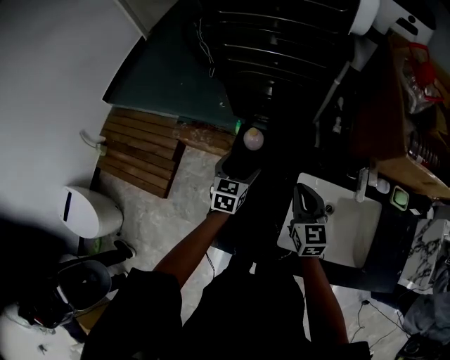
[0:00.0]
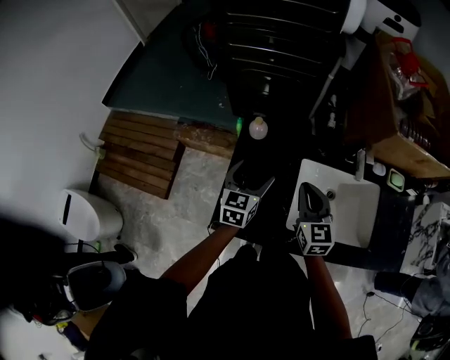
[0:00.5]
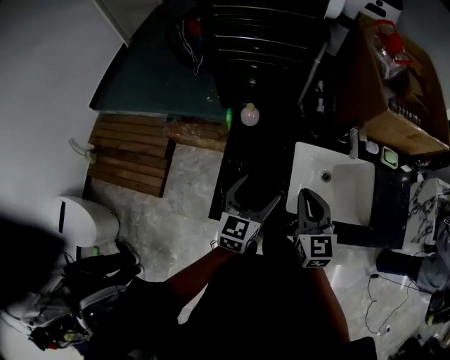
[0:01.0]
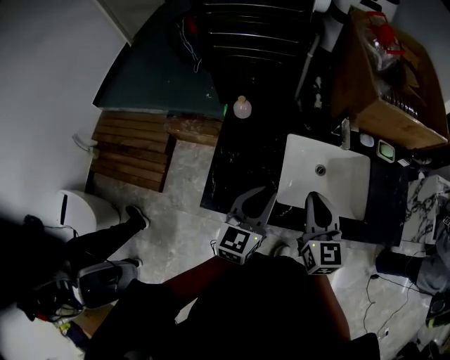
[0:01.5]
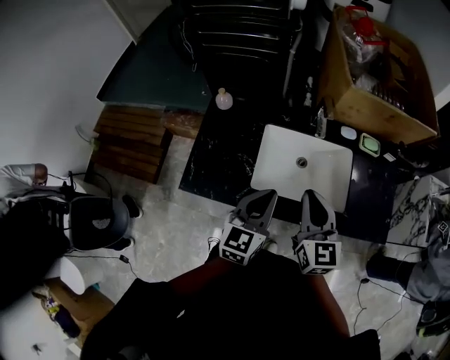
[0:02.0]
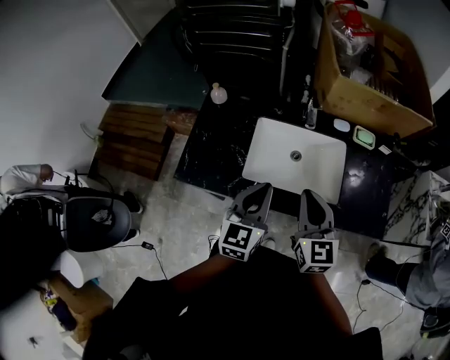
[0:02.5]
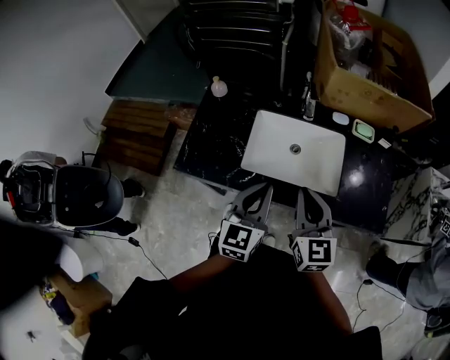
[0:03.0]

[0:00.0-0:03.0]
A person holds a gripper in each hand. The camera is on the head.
0:00.0 to 0:01.5: The right gripper travels backward and upward by some 20 cm, while the left gripper shifts roughly 30 cm backward, upward and to the right, swivels approximately 20 degrees, and closes its fingers.
0:01.5 to 0:03.0: Both grippers move to the right and backward, some 20 cm.

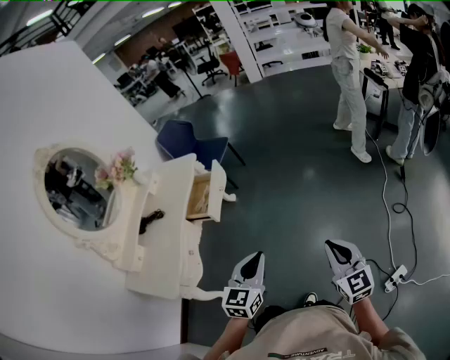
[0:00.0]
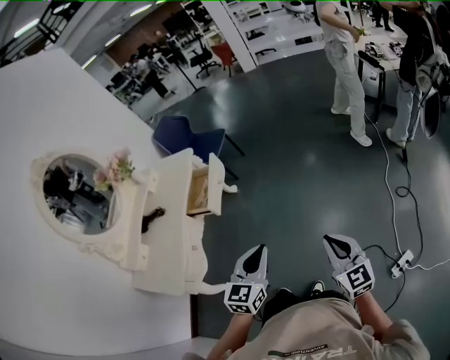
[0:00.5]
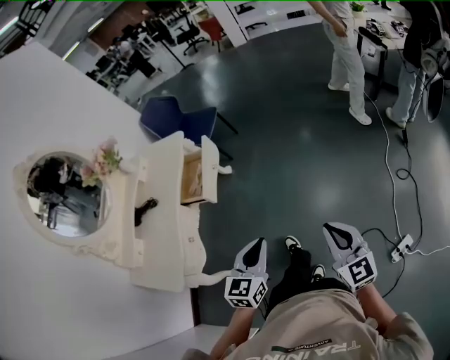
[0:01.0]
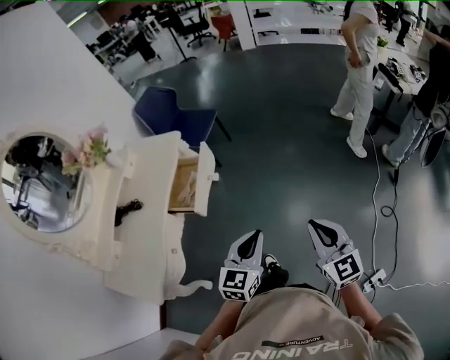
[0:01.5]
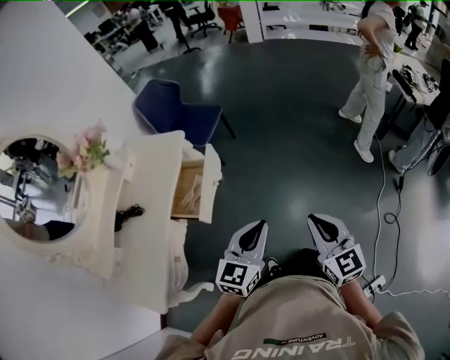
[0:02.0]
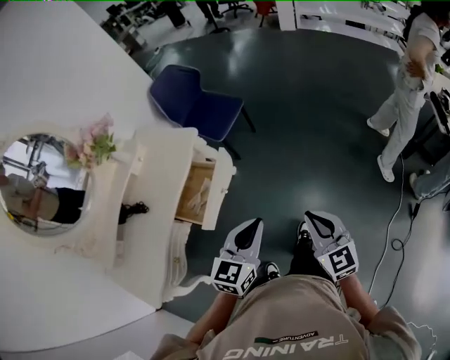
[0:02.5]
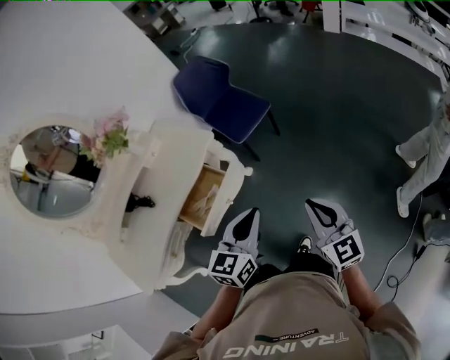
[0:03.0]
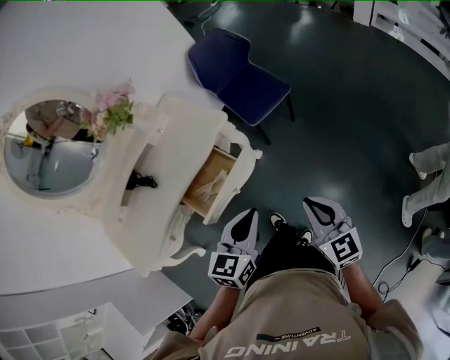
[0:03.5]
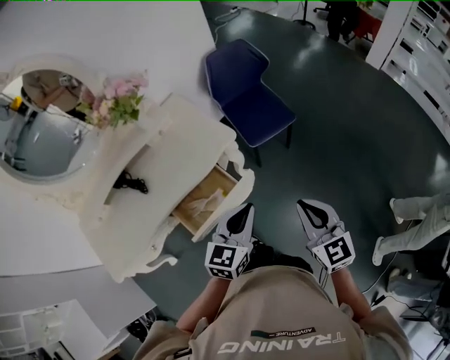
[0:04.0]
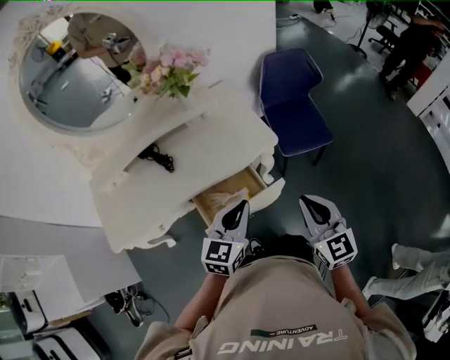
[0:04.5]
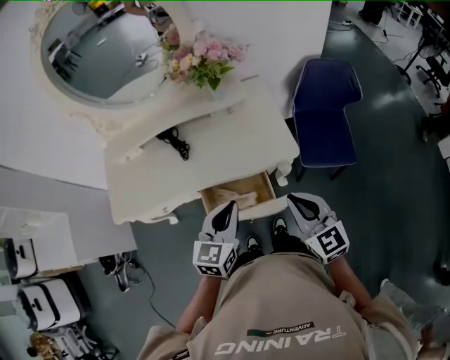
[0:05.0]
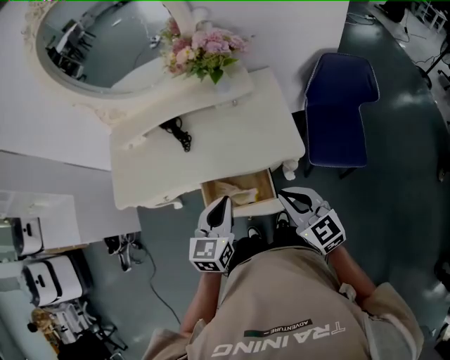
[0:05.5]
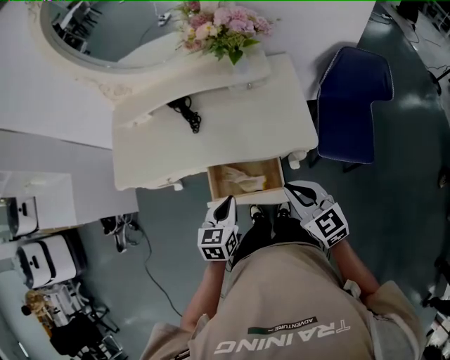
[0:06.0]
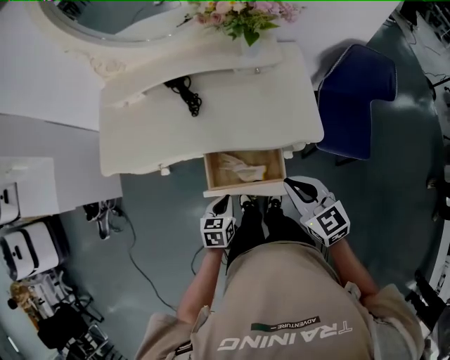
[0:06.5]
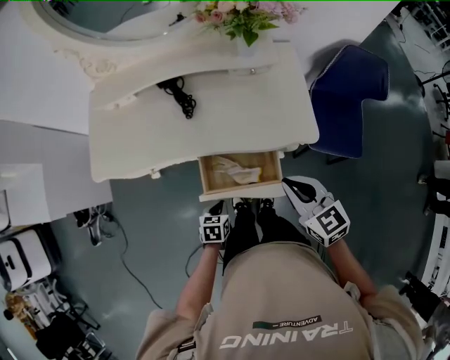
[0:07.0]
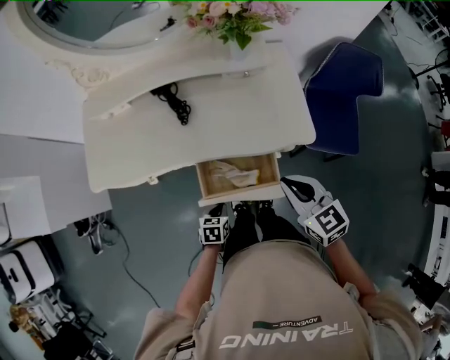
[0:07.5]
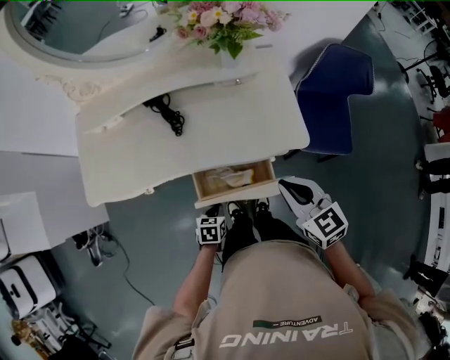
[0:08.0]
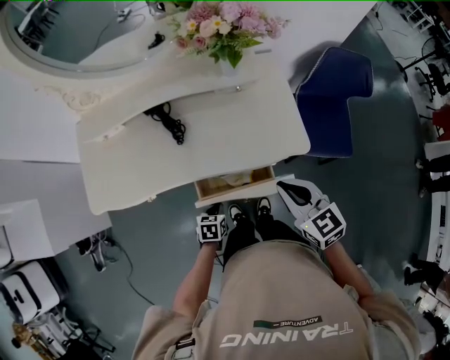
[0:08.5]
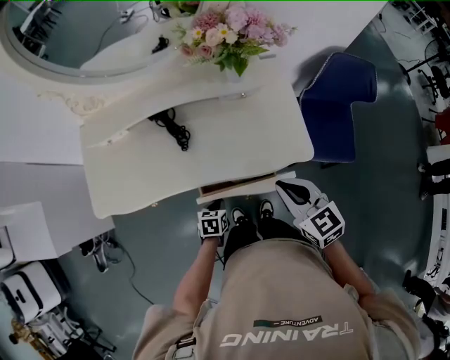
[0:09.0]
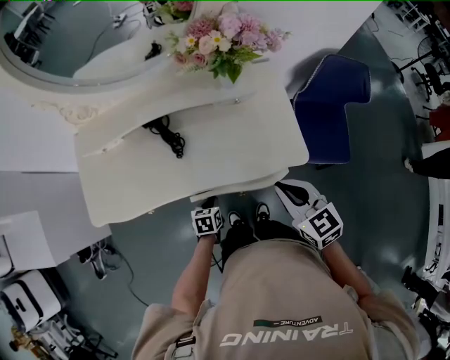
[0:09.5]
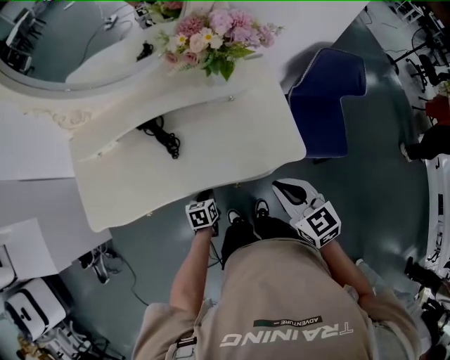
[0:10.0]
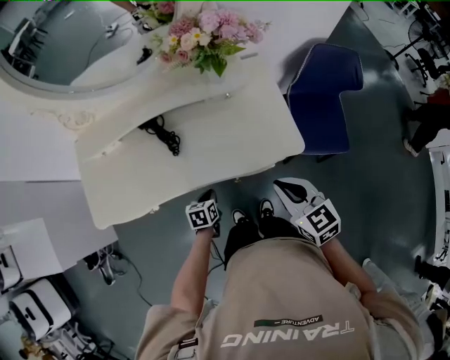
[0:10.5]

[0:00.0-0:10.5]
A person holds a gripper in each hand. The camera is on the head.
0:00.0 to 0:02.0: The right gripper heads forward and to the left, covering some 30 cm. The left gripper moves forward, approximately 25 cm.
0:02.0 to 0:04.0: The right gripper changes place by approximately 40 cm, and swivels approximately 40 degrees; the left gripper shifts by some 35 cm, and rotates some 40 degrees.
0:04.0 to 0:06.5: The left gripper goes some 20 cm downward, and points its fingers roughly 30 degrees further downward, while the right gripper ends up roughly 25 cm from where it was, and rotates roughly 50 degrees.
0:06.5 to 0:08.5: The right gripper moves forward, roughly 5 cm. Meanwhile the left gripper moves downward and forward, approximately 10 cm.
0:08.5 to 0:10.5: The left gripper shifts some 10 cm forward.

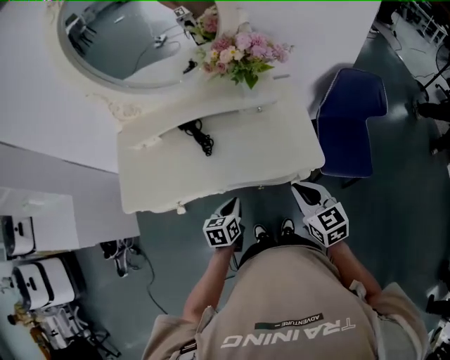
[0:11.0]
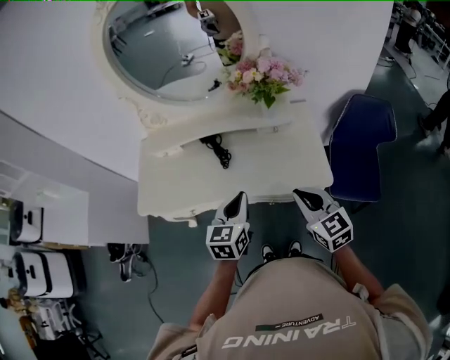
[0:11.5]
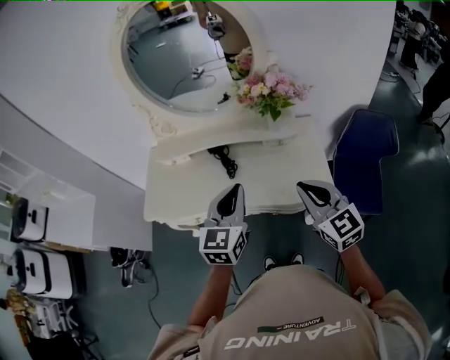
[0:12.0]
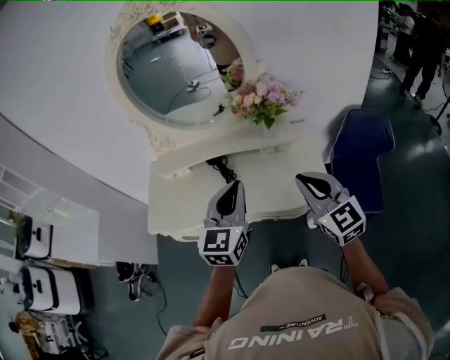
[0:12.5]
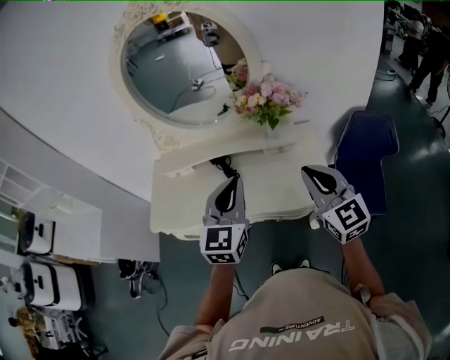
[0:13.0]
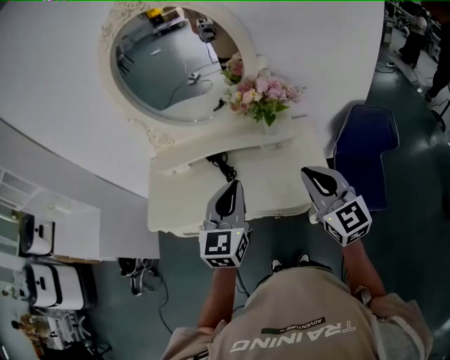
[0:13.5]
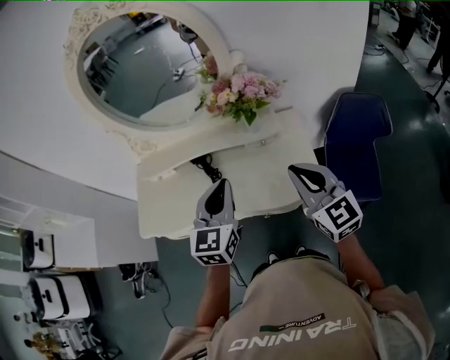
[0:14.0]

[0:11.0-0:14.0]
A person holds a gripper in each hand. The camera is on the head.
0:11.0 to 0:12.5: The right gripper heads upward, covering about 20 cm, and swivels some 30 degrees. Meanwhile the left gripper moves upward, approximately 30 cm, and tilts its fingers about 30 degrees upward.
0:12.5 to 0:14.0: The right gripper moves approximately 5 cm. Meanwhile the left gripper ends up roughly 5 cm from where it was.

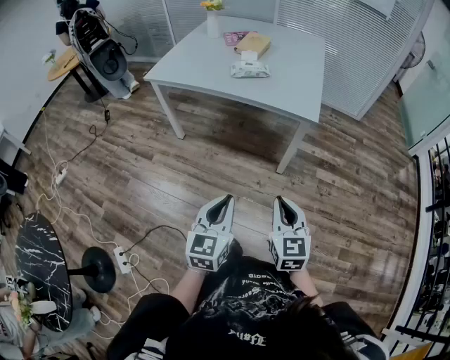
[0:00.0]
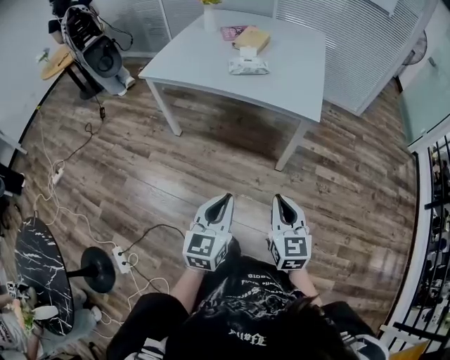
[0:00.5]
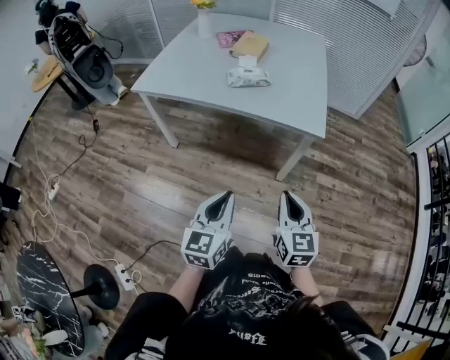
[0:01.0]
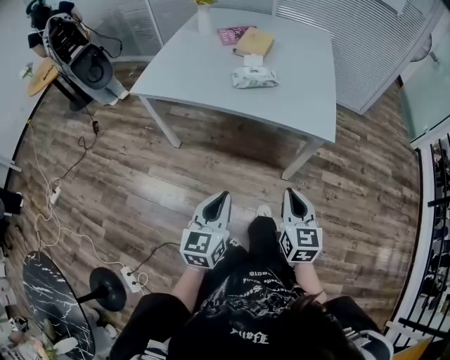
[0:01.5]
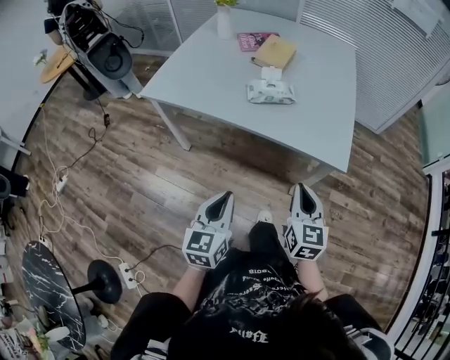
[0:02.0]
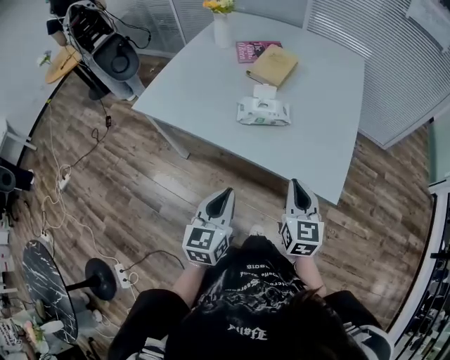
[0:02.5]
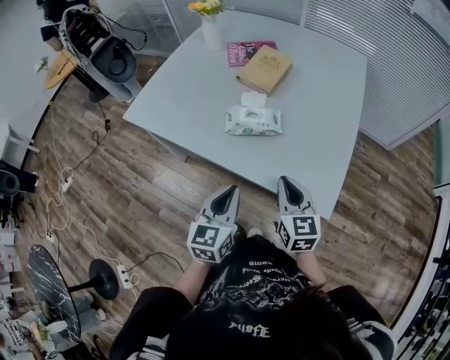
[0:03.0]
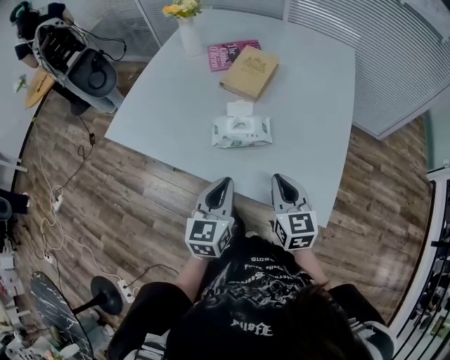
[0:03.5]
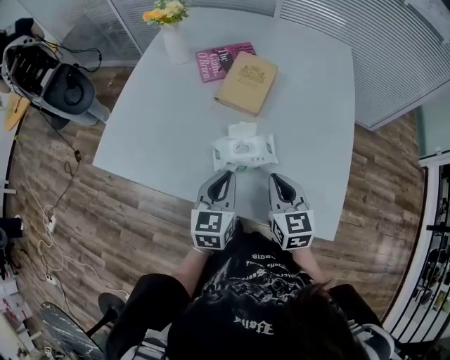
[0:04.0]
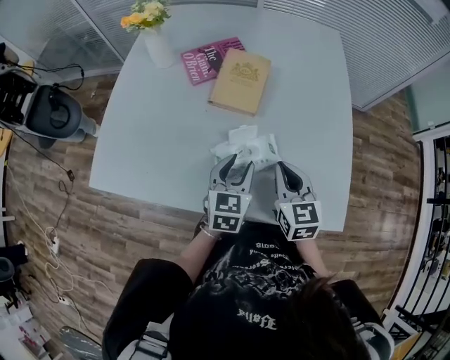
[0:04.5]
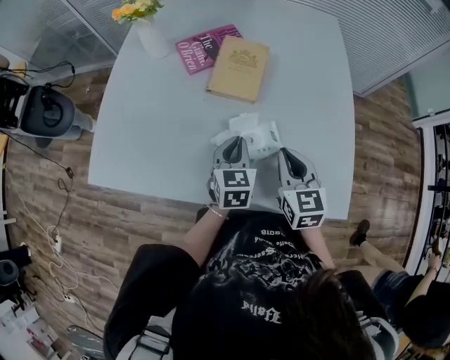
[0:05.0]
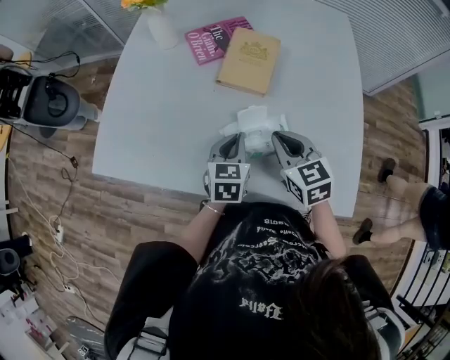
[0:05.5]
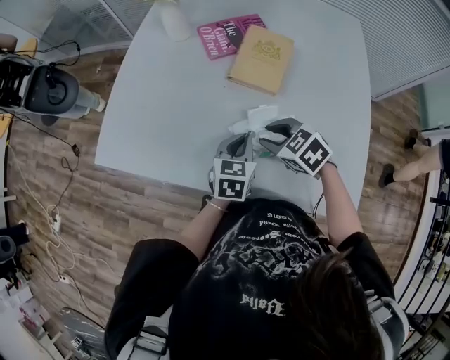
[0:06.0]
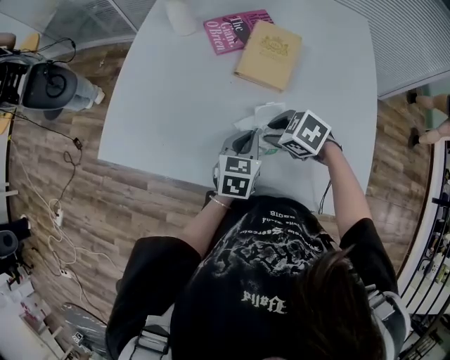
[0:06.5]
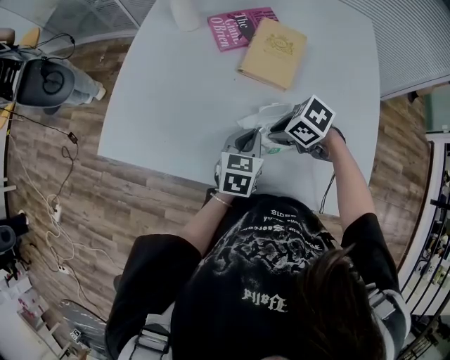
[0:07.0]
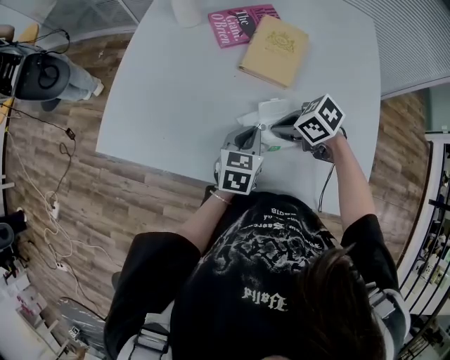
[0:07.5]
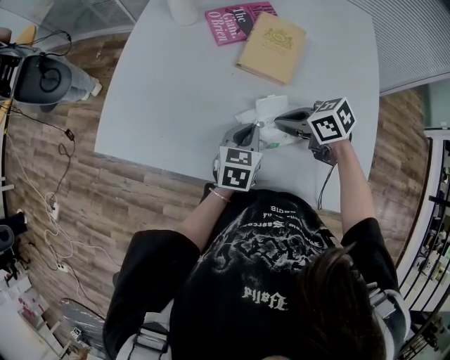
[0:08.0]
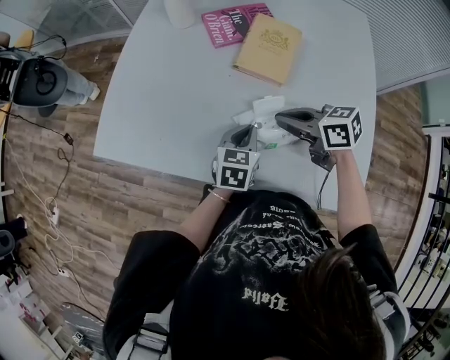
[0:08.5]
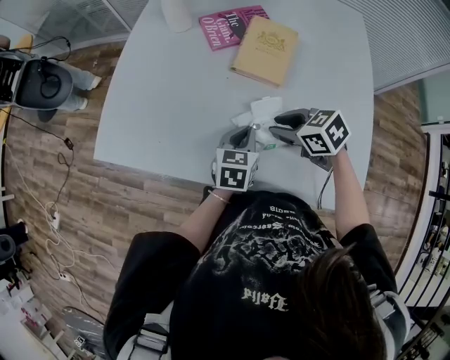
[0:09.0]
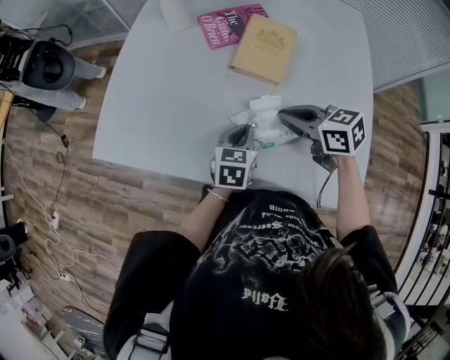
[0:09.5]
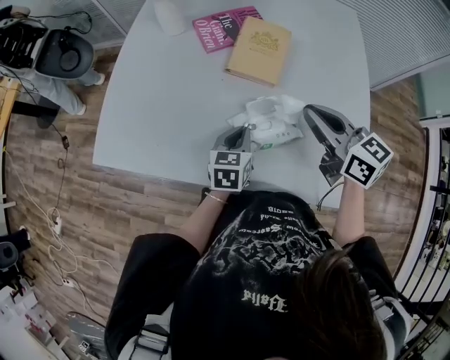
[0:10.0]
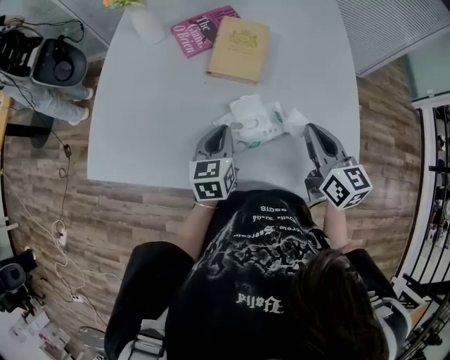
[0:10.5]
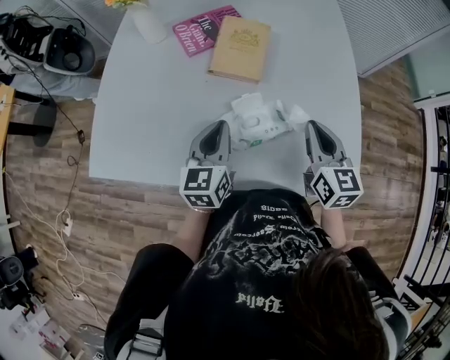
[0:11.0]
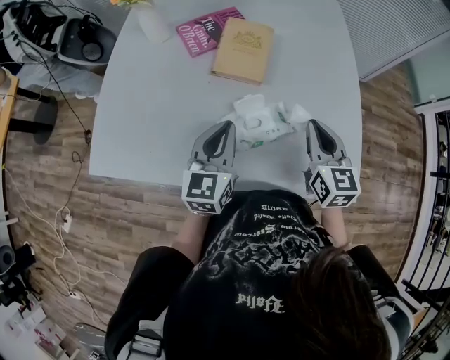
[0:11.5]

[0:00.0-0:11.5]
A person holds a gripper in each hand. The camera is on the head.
0:00.0 to 0:02.0: The grippers both shift forward by about 30 cm.
0:02.0 to 0:04.0: The grippers both shift forward by roughly 40 cm.
0:04.0 to 0:06.0: The left gripper ends up roughly 10 cm from where it was, and opens and closes again. Meanwhile the right gripper moves some 15 cm, turns by roughly 50 degrees, and opens.
0:06.0 to 0:07.5: The right gripper swivels roughly 30 degrees, and closes its fingers.
0:07.5 to 0:09.5: The right gripper heads upward, covering some 10 cm, turns by approximately 30 degrees, and opens, then closes again.
0:09.5 to 0:11.5: The right gripper ends up roughly 15 cm from where it was, and turns by approximately 50 degrees, while the left gripper moves upward, roughly 10 cm, and rotates about 30 degrees.
